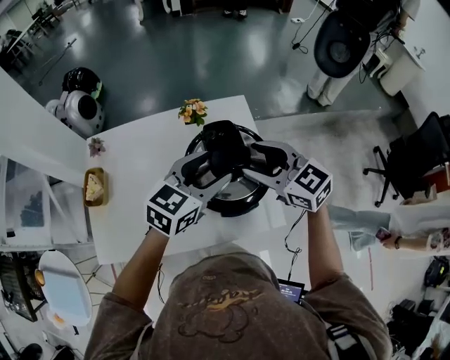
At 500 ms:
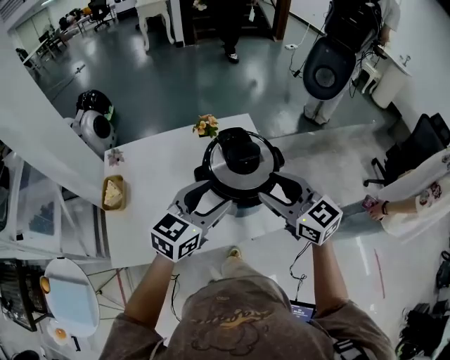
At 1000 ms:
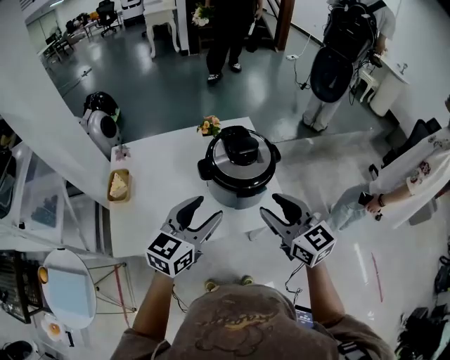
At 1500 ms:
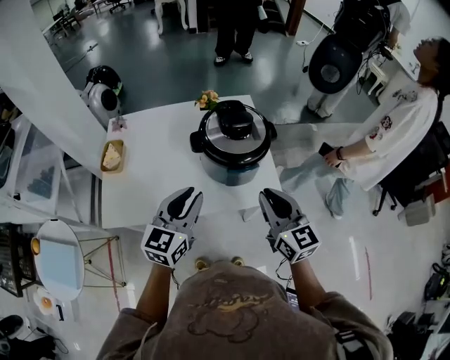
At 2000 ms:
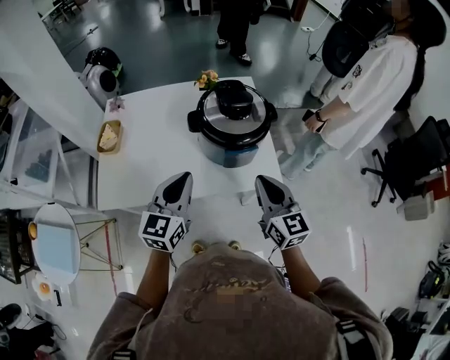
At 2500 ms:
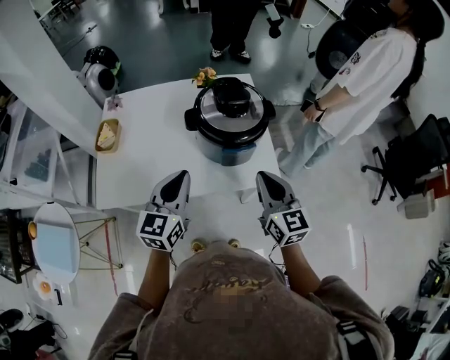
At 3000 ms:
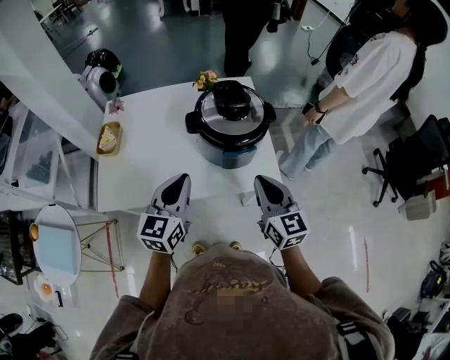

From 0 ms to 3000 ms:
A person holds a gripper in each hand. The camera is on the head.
From 0 ms to 1500 ms: The grippers both shift backward by about 20 cm. The right gripper turns by approximately 30 degrees, and closes its fingers, while the left gripper changes its angle by approximately 20 degrees, and closes up.
From 1500 ms to 3000 ms: The grippers move only a little.

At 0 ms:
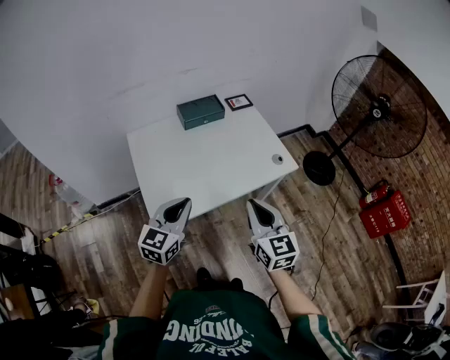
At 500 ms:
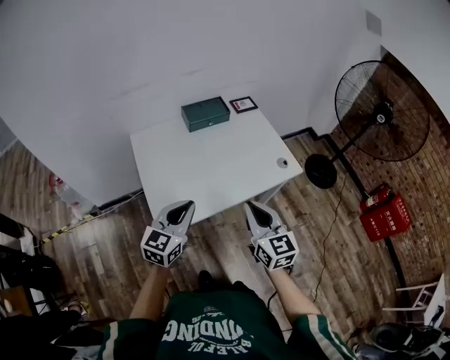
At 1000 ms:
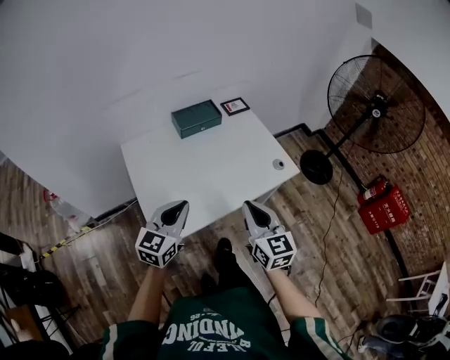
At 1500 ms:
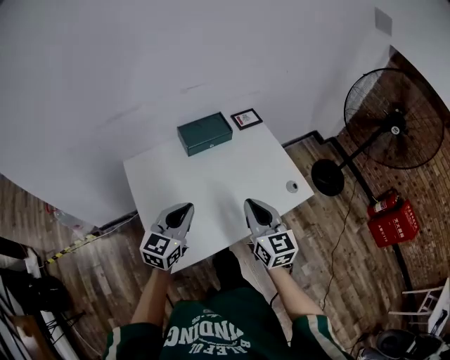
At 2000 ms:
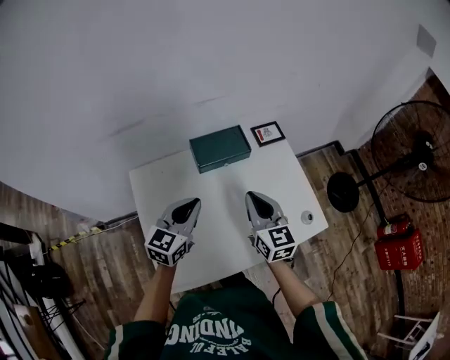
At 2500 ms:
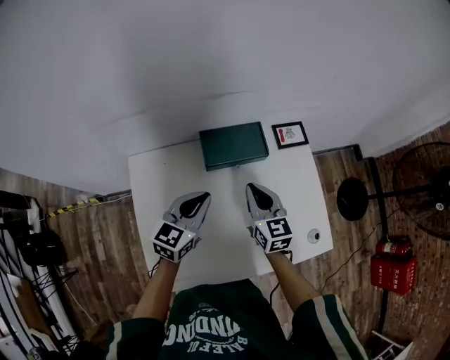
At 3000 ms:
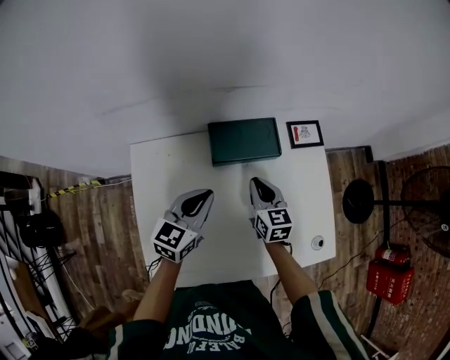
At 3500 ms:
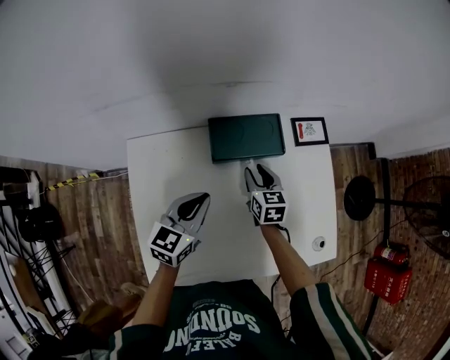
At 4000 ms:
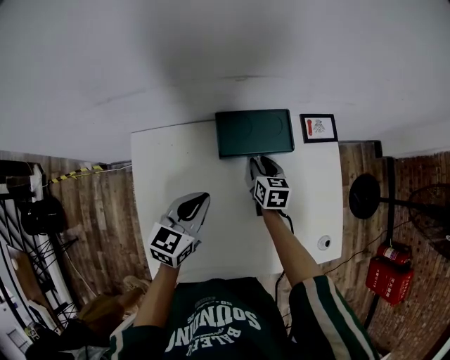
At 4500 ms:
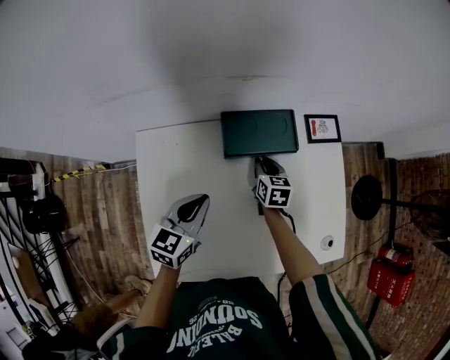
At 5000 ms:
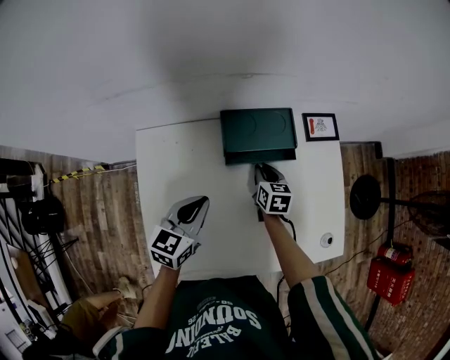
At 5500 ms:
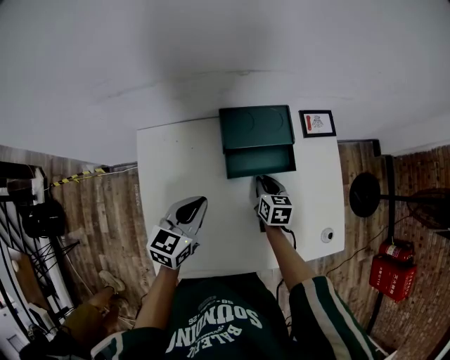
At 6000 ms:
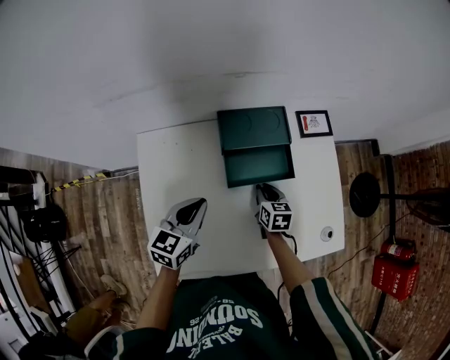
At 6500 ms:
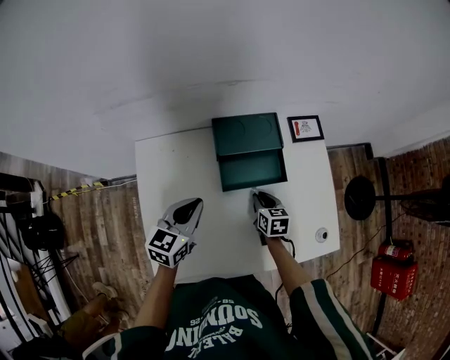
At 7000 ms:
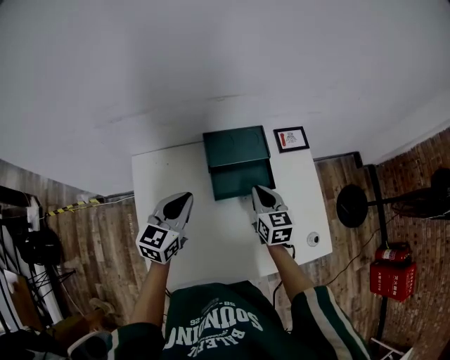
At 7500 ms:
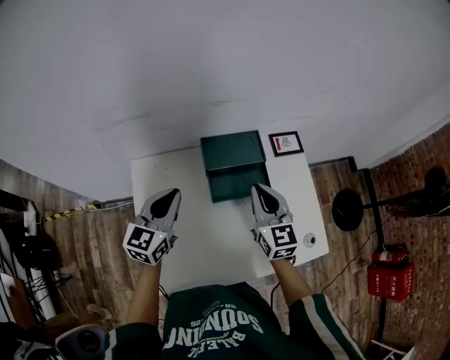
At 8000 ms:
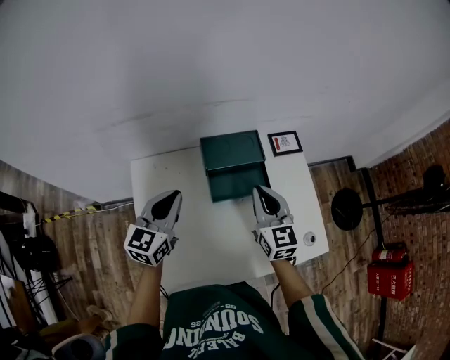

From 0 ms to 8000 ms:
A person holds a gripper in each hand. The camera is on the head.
From 0 ms to 2000 ms: The two grippers go roughly 30 cm forward.
From 2000 ms to 4000 ms: The left gripper moves downward and forward, approximately 15 cm; the right gripper is displaced downward and forward by about 35 cm, turns by about 30 degrees, and opens.
From 4000 ms to 6000 ms: The right gripper shifts roughly 10 cm backward.
From 6000 ms to 8000 ms: The left gripper shifts about 10 cm upward. The right gripper is displaced upward by roughly 25 cm, and tips its fingers upward by approximately 30 degrees.

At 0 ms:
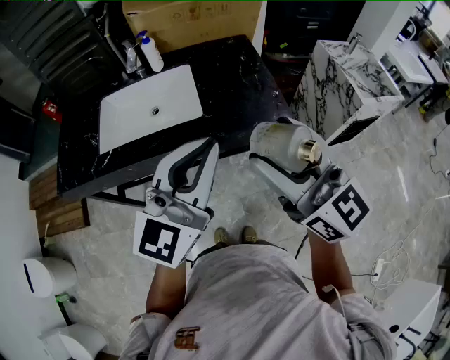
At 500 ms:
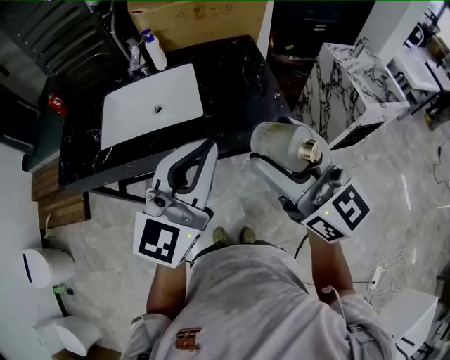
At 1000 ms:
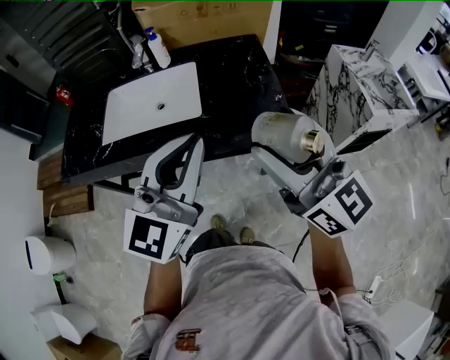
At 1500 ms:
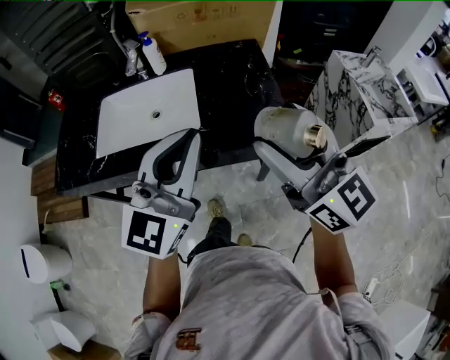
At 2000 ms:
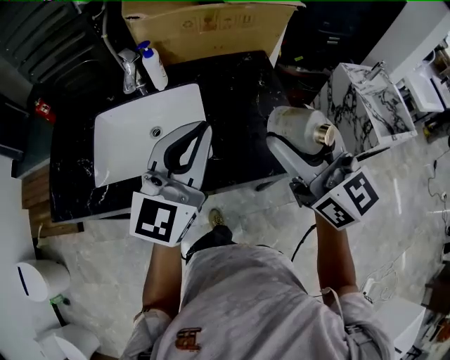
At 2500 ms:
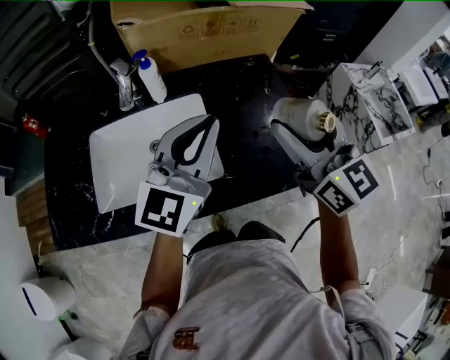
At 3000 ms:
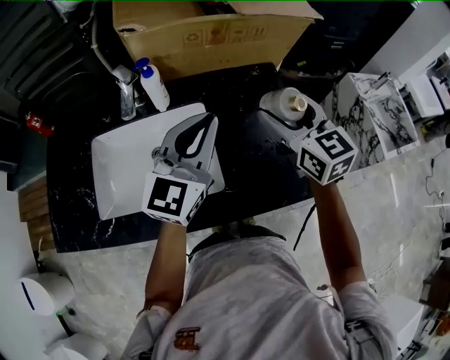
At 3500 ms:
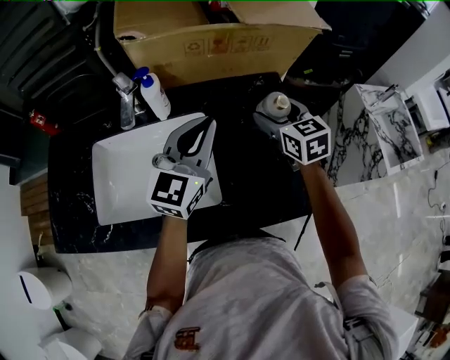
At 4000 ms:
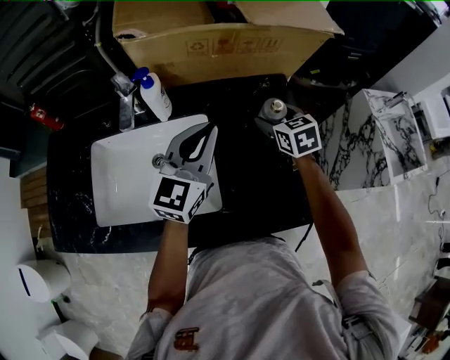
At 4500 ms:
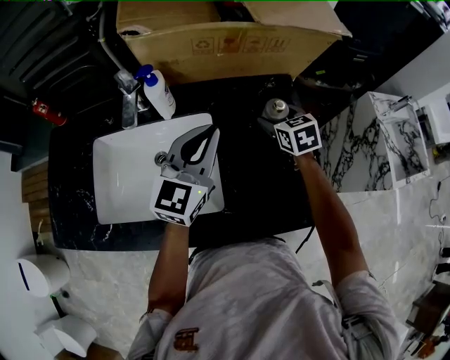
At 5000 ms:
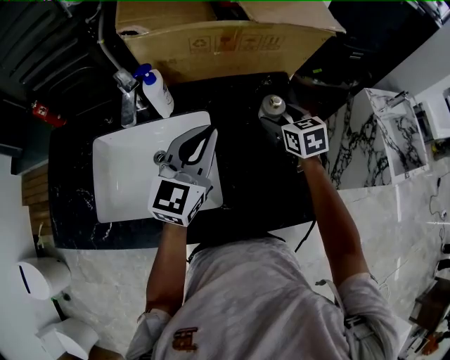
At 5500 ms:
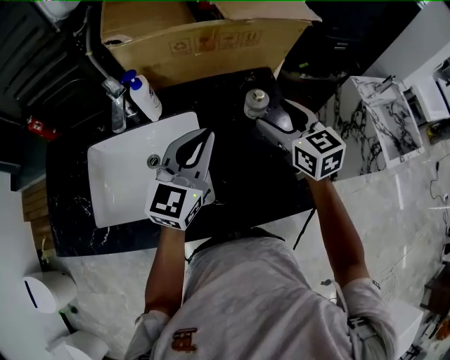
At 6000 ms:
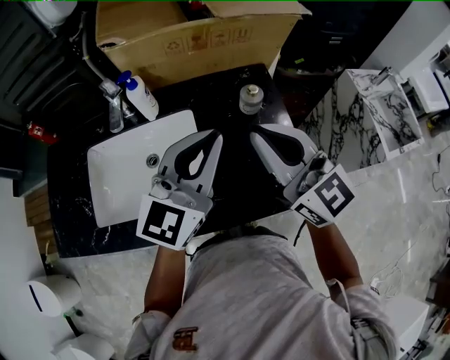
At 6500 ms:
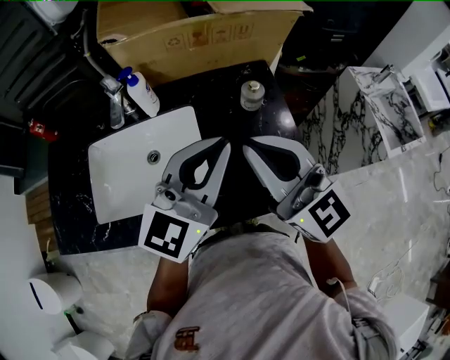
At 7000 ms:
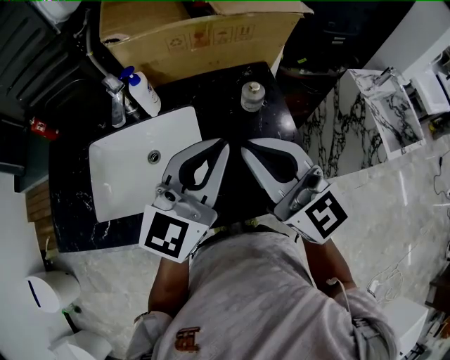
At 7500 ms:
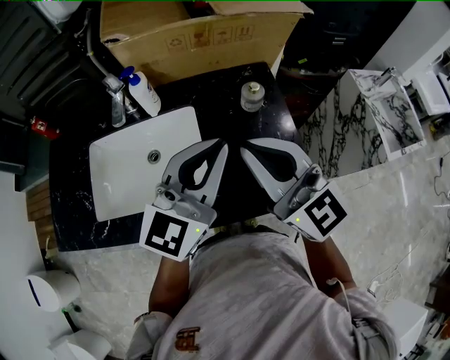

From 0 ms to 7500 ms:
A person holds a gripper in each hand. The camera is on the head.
From 0 ms to 2000 ms: Both grippers move forward, about 20 cm.
From 2000 ms to 4000 ms: The left gripper shifts about 25 cm forward and downward. Meanwhile the right gripper moves forward and downward, some 40 cm, and angles its fingers downward, by approximately 40 degrees.
From 4000 ms to 5500 ms: The right gripper goes some 15 cm upward and backward.
From 5500 ms to 7500 ms: The left gripper travels backward and upward by some 10 cm; the right gripper goes about 20 cm backward, upward and to the left, swivels some 30 degrees, and closes.

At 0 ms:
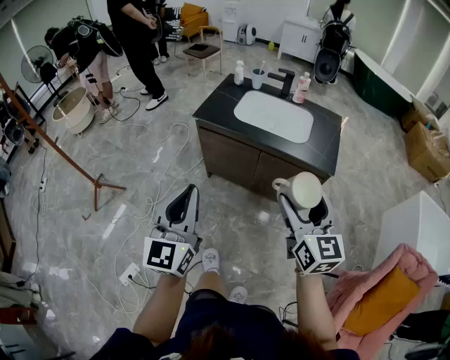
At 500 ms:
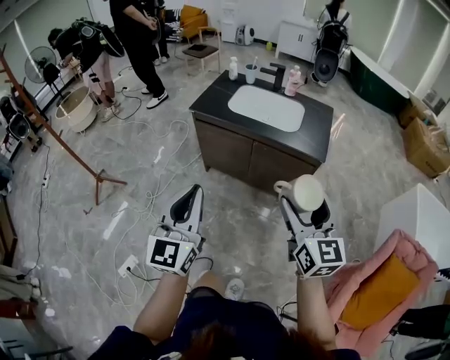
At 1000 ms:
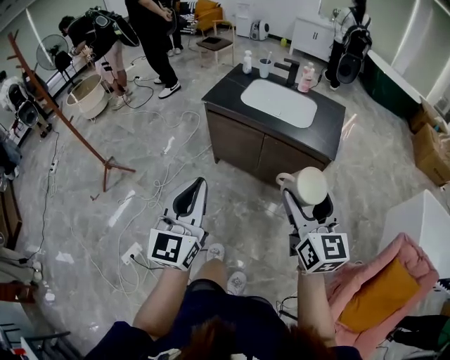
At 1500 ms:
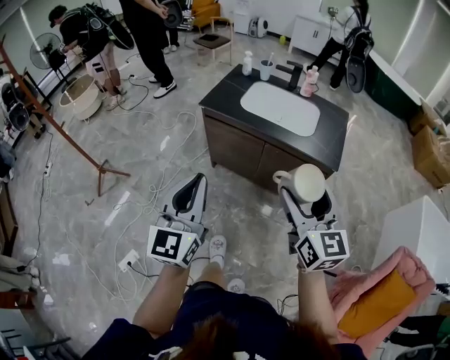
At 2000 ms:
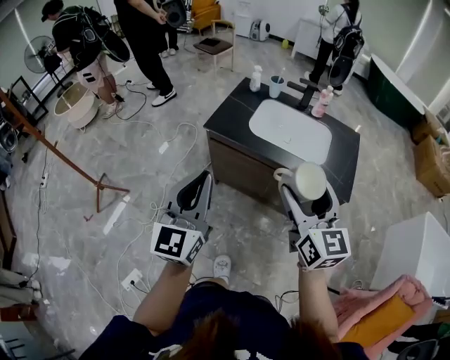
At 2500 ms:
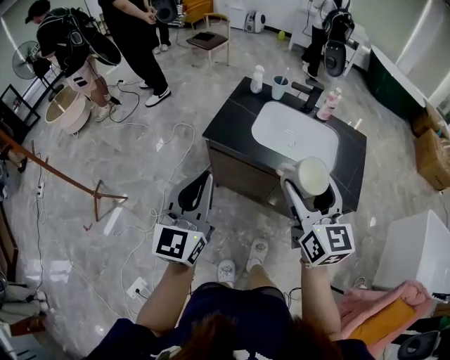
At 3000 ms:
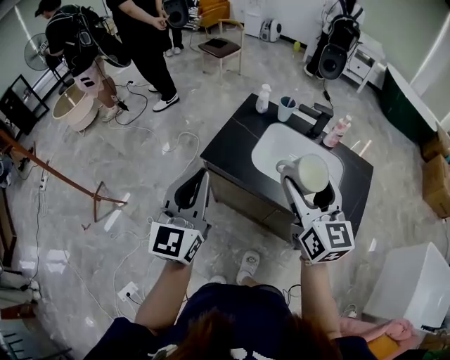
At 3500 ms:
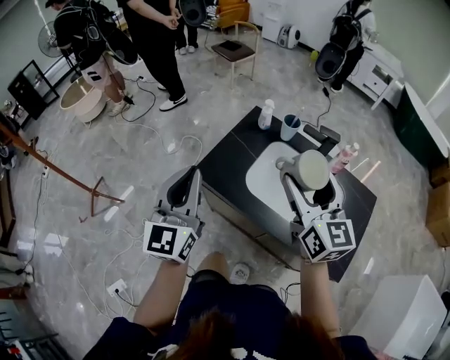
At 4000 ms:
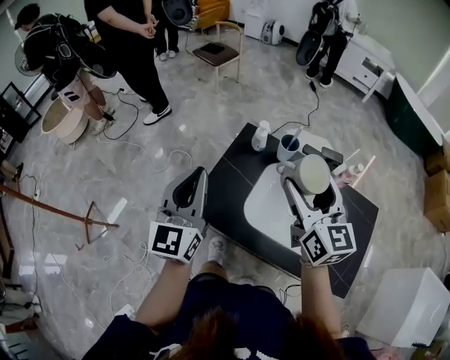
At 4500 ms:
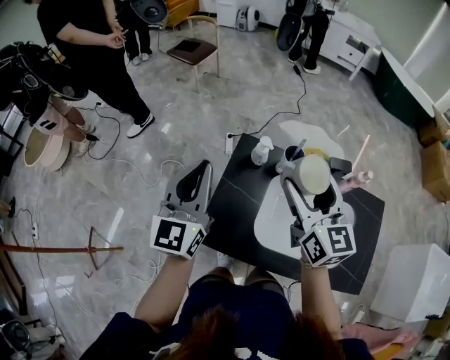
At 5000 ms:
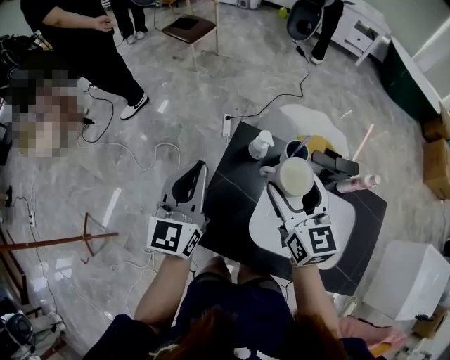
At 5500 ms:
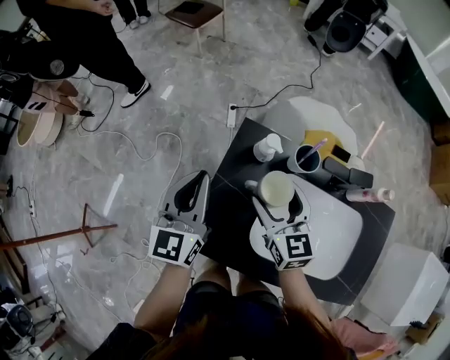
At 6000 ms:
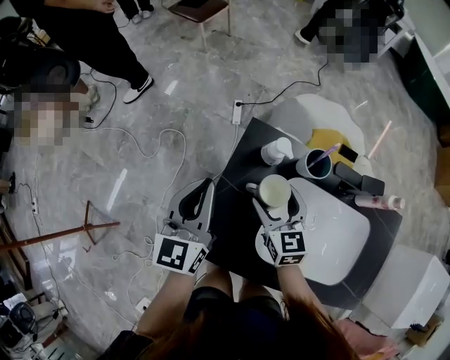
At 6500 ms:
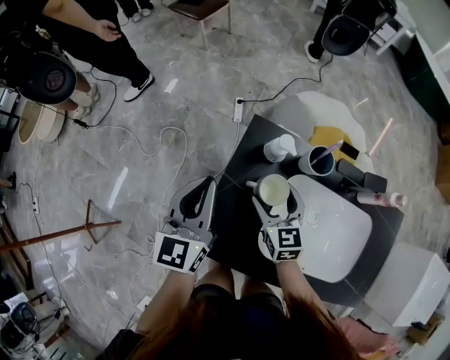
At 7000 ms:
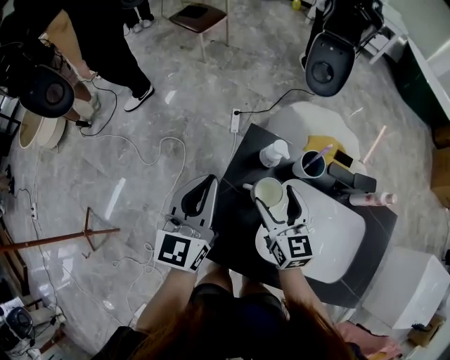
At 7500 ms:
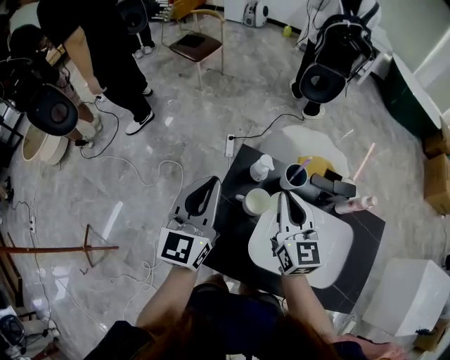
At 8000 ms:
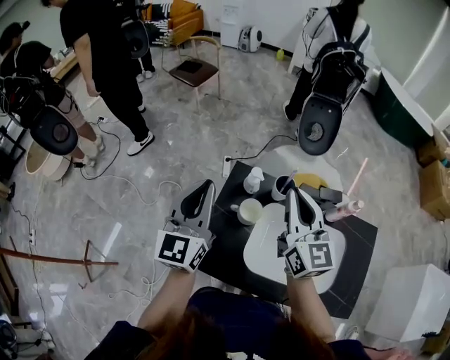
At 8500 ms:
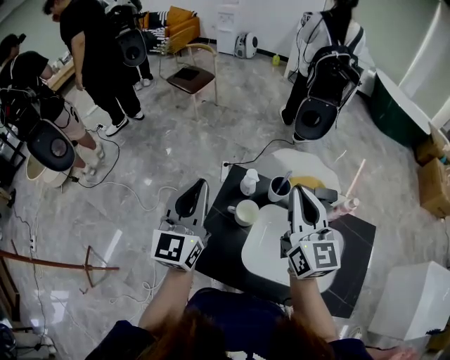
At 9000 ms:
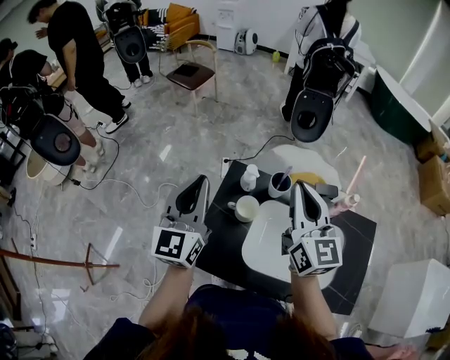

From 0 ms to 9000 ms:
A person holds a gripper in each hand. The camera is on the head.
From 0 ms to 2000 ms: The right gripper moves forward and to the left, some 20 cm; the left gripper is displaced forward by about 20 cm.
From 2000 ms to 4500 ms: The two grippers travel together, forward, approximately 70 cm.
From 4500 ms to 7000 ms: The right gripper shifts approximately 25 cm downward. The left gripper goes some 15 cm downward and forward.
From 7000 ms to 9000 ms: The left gripper heads upward, covering some 15 cm. Meanwhile the right gripper shifts some 25 cm upward, rotates approximately 20 degrees, and closes its fingers.
